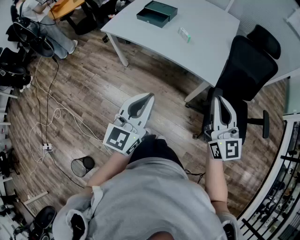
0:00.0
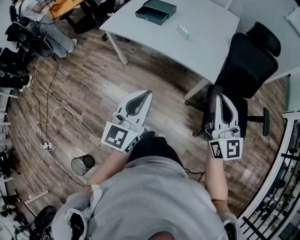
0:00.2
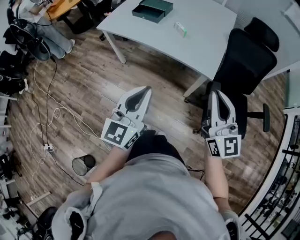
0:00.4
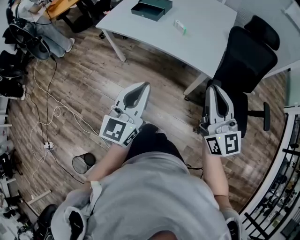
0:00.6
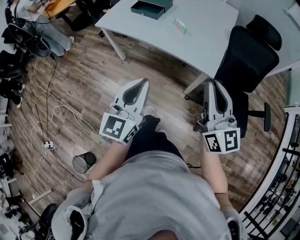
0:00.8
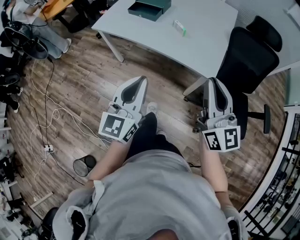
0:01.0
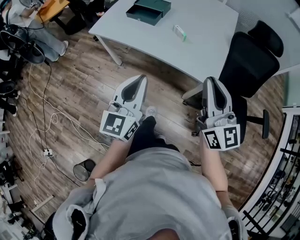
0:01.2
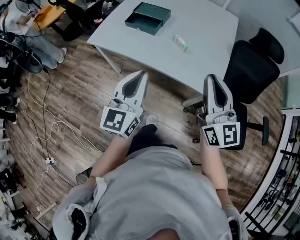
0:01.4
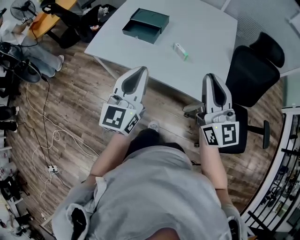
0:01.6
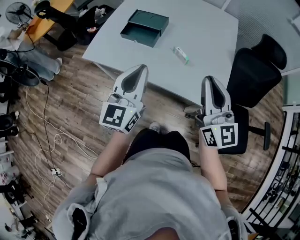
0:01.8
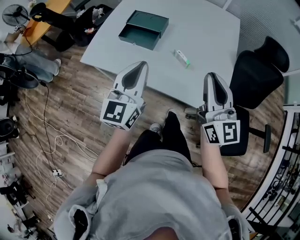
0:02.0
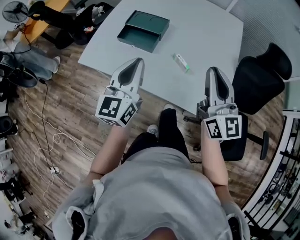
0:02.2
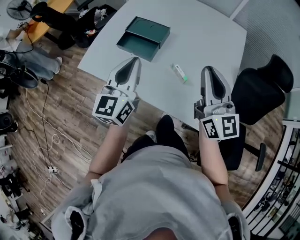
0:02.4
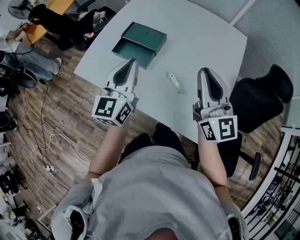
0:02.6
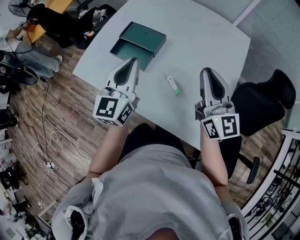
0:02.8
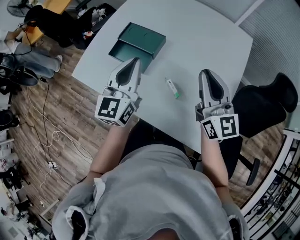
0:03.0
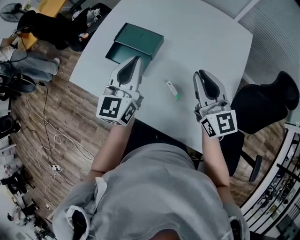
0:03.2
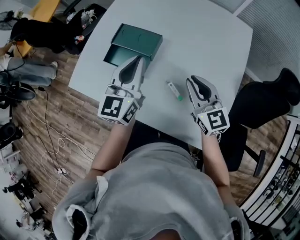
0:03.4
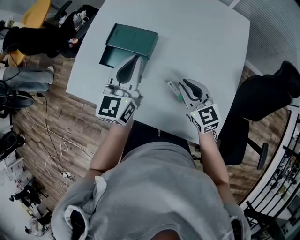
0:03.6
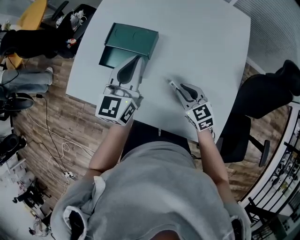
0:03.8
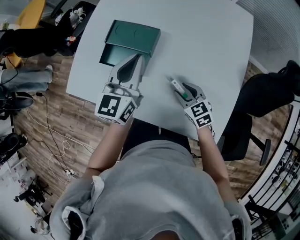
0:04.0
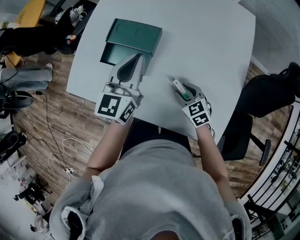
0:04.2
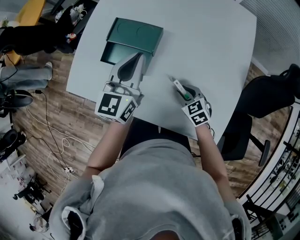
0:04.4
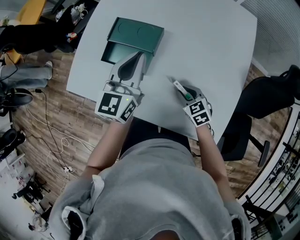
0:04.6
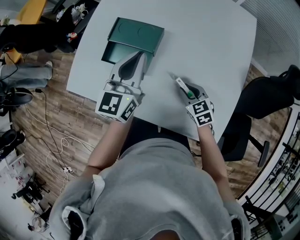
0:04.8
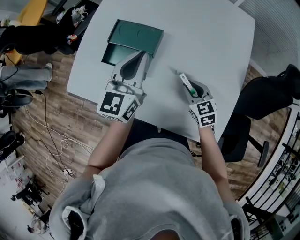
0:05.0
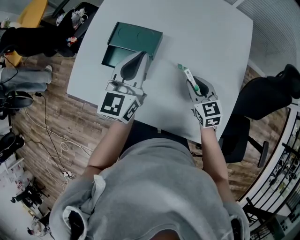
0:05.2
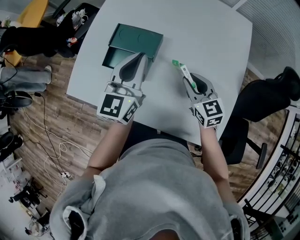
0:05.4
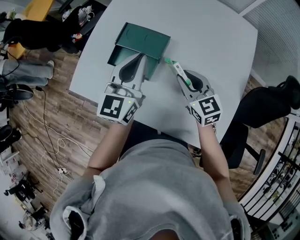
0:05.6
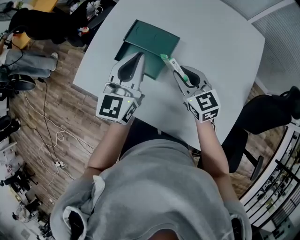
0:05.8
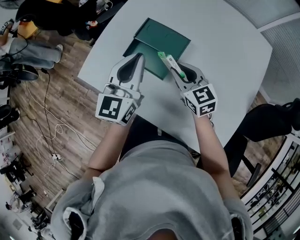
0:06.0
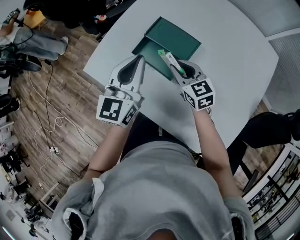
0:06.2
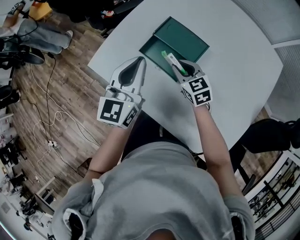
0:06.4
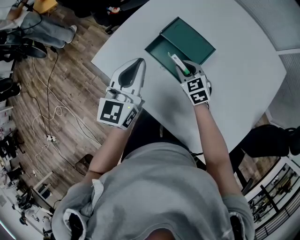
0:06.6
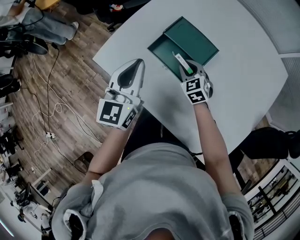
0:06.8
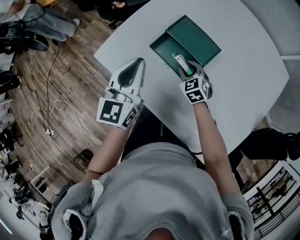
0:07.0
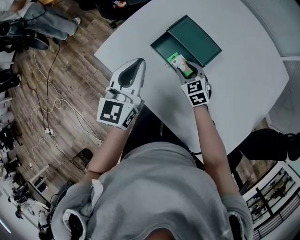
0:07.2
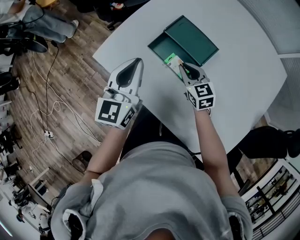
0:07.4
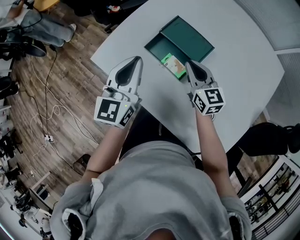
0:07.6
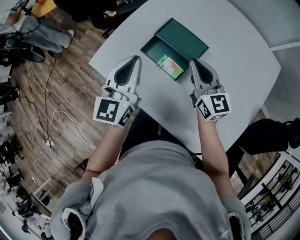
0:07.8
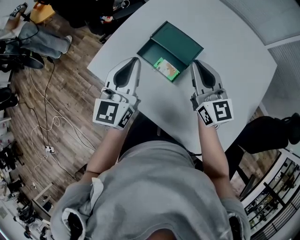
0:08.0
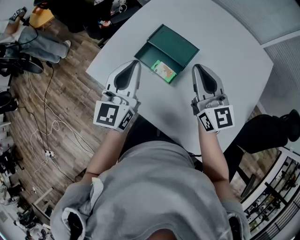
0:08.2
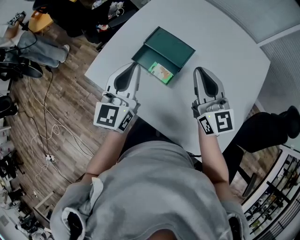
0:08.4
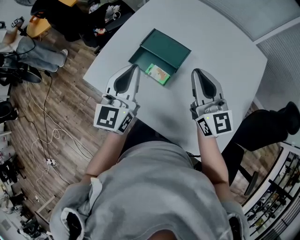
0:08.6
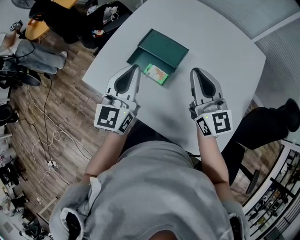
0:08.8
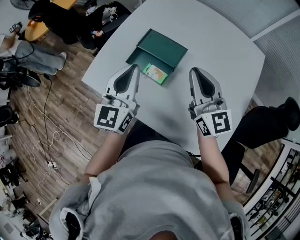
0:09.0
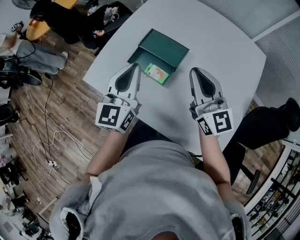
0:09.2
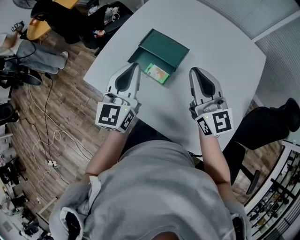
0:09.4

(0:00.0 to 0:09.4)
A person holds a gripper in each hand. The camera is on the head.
0:00.0 - 0:01.6: The grippers both shift forward by some 30 cm.
0:01.6 - 0:03.2: Both grippers move forward, approximately 40 cm.
0:03.2 - 0:04.8: The right gripper is displaced downward by some 25 cm, and tips its fingers downward by approximately 40 degrees, while the left gripper is displaced forward and downward by about 10 cm.
0:04.8 - 0:06.2: The left gripper moves to the left, some 15 cm. Meanwhile the right gripper heads to the left, forward and upward, covering roughly 25 cm, and swivels approximately 20 degrees.
0:06.2 - 0:07.8: The right gripper travels upward by about 10 cm, and swivels about 20 degrees; the left gripper heads to the left, covering about 5 cm.
0:07.8 - 0:09.4: The left gripper shifts some 5 cm to the right, while the right gripper shifts approximately 15 cm upward, backward and to the right.

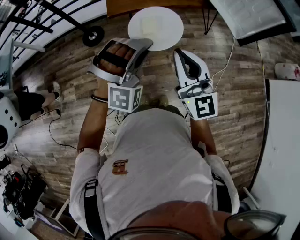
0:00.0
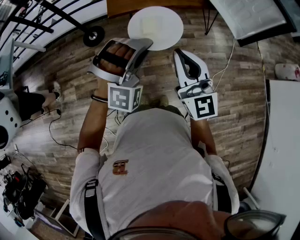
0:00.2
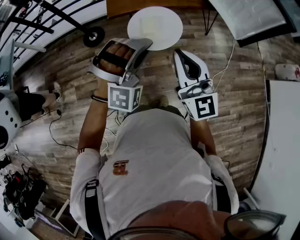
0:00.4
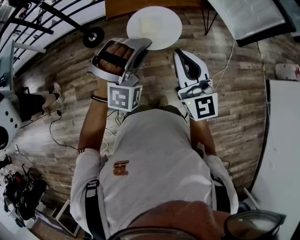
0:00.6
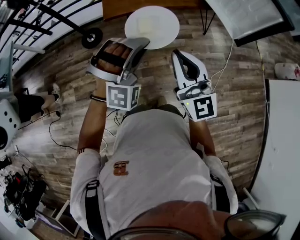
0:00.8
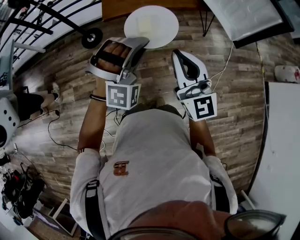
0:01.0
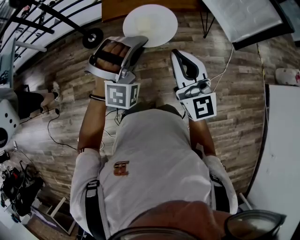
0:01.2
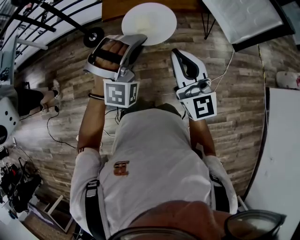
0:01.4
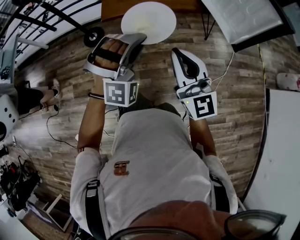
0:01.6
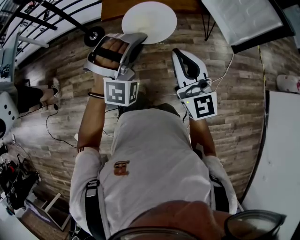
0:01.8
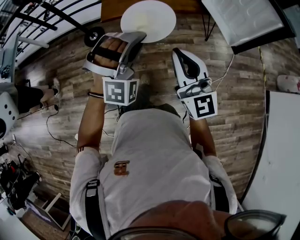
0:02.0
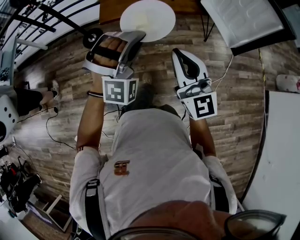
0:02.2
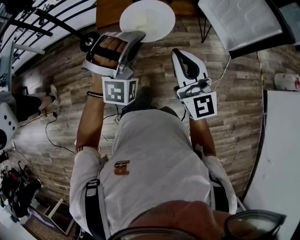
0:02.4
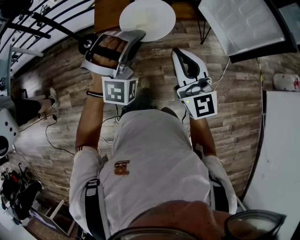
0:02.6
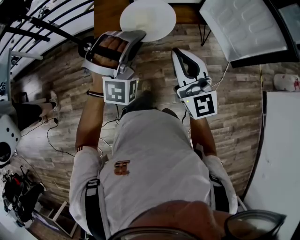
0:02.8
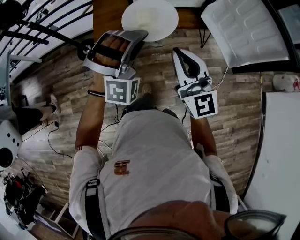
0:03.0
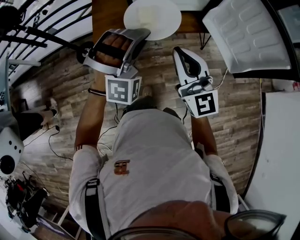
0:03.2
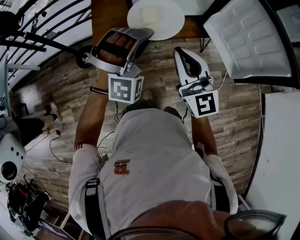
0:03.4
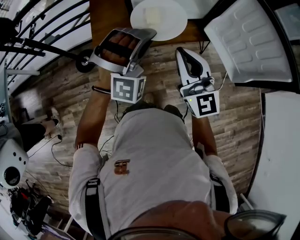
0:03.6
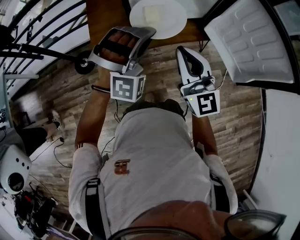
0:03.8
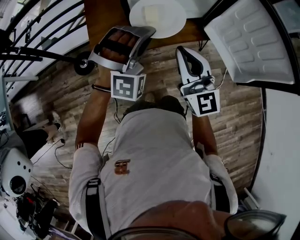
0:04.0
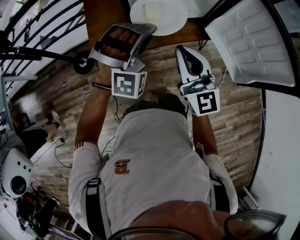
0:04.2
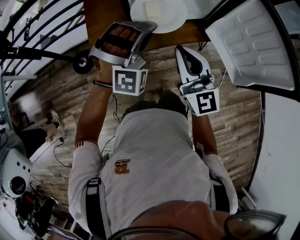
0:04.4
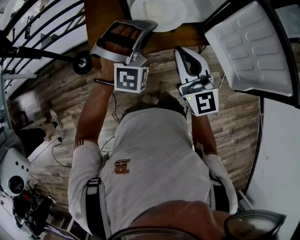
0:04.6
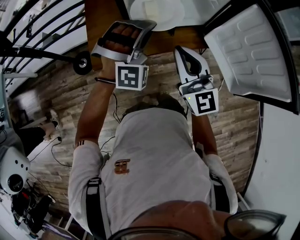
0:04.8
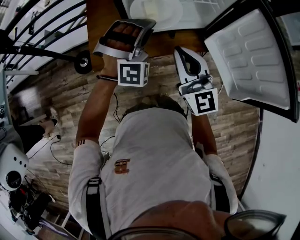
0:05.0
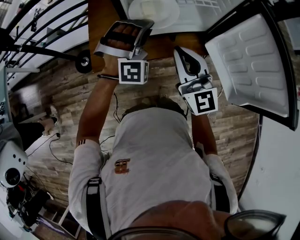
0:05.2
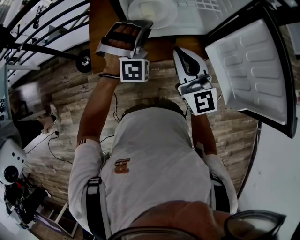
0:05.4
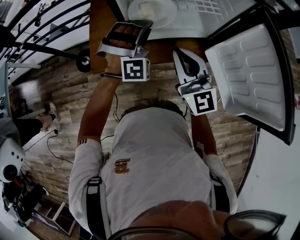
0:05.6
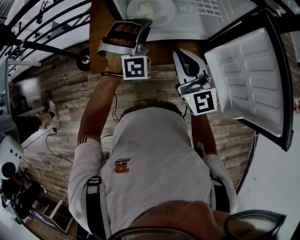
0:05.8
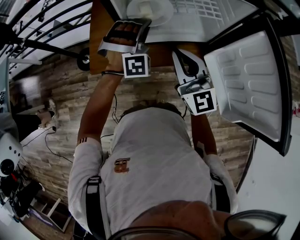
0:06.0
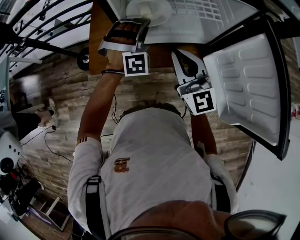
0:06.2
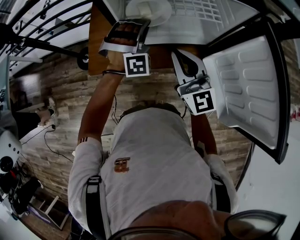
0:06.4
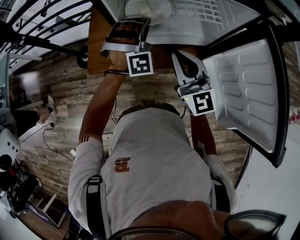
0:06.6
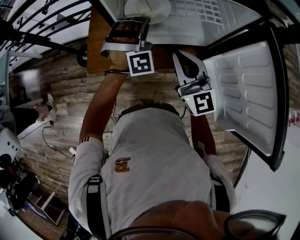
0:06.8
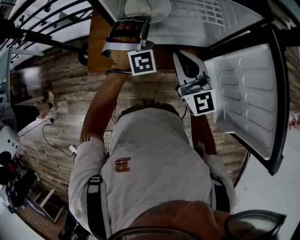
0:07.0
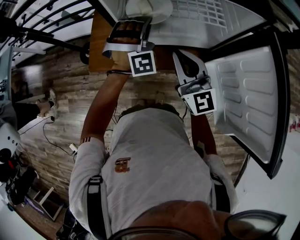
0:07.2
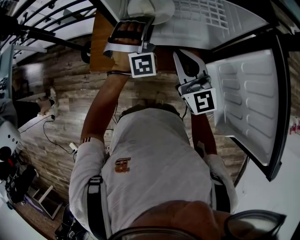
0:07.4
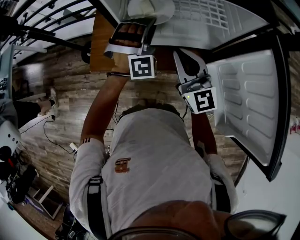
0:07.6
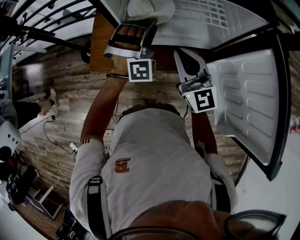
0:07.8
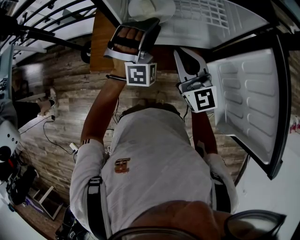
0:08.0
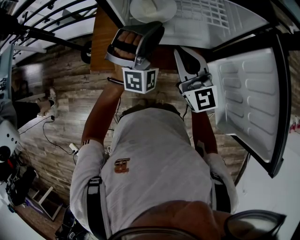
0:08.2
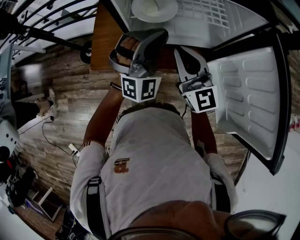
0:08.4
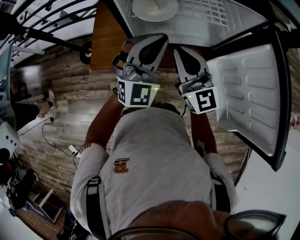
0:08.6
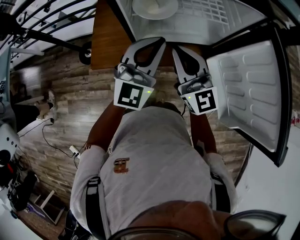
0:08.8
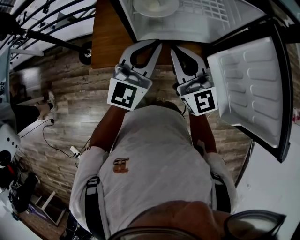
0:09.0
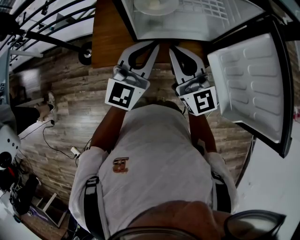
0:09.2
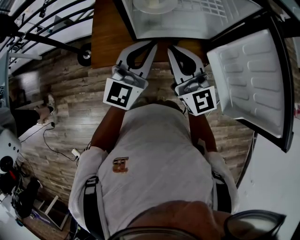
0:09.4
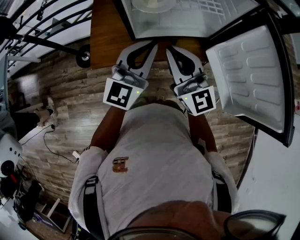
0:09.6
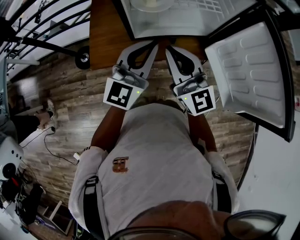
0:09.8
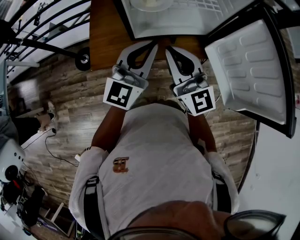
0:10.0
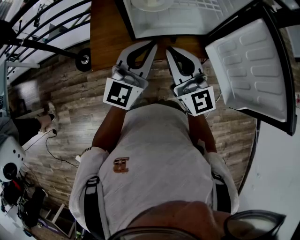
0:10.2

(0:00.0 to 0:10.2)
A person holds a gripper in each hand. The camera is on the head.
0:00.0 - 0:01.4: The right gripper ends up some 10 cm from where it was.
0:01.4 - 0:03.0: The right gripper shifts by some 20 cm.
0:03.0 - 0:04.4: The right gripper shifts by about 20 cm.
0:04.4 - 0:05.8: The right gripper changes place by approximately 15 cm.
0:05.8 - 0:07.2: The right gripper moves roughly 5 cm.
0:08.8 - 0:10.2: The right gripper moves about 10 cm.

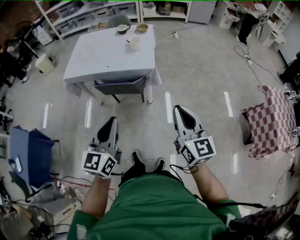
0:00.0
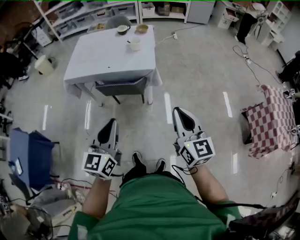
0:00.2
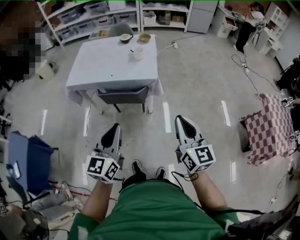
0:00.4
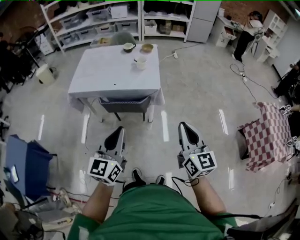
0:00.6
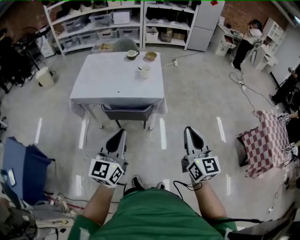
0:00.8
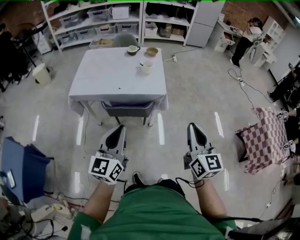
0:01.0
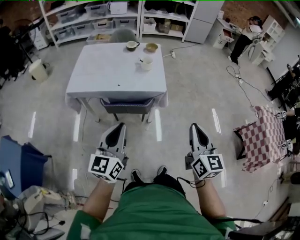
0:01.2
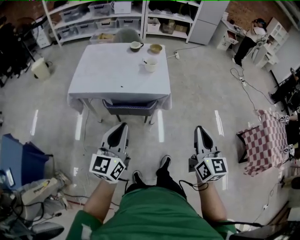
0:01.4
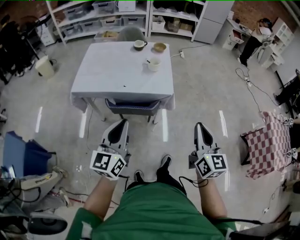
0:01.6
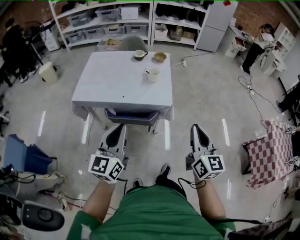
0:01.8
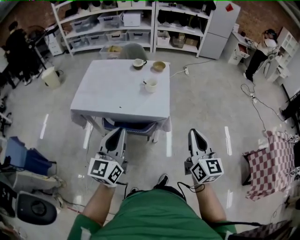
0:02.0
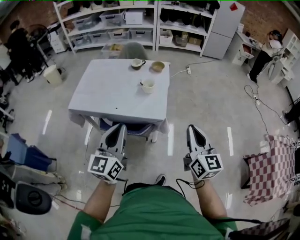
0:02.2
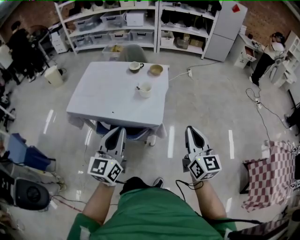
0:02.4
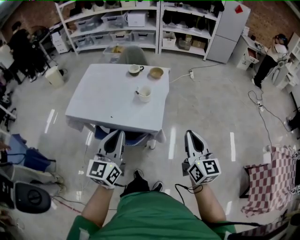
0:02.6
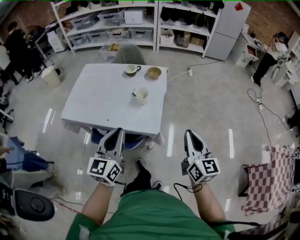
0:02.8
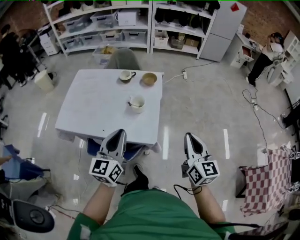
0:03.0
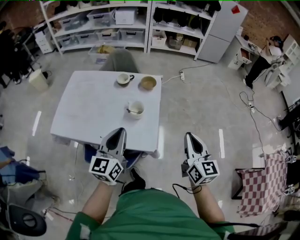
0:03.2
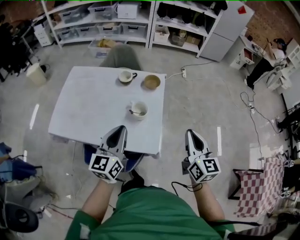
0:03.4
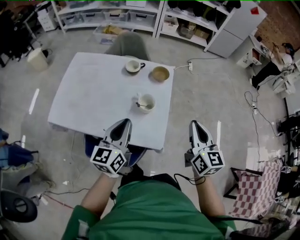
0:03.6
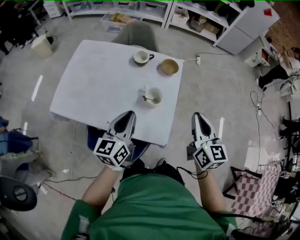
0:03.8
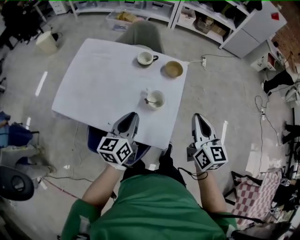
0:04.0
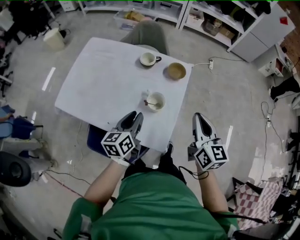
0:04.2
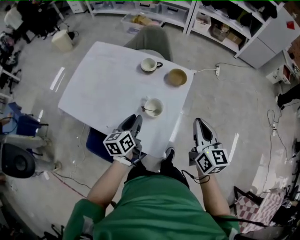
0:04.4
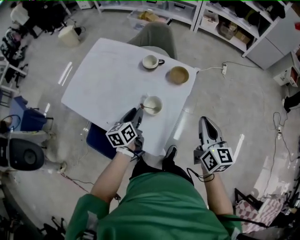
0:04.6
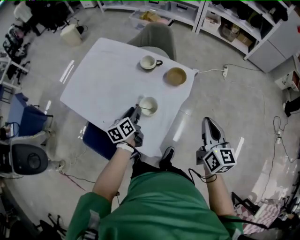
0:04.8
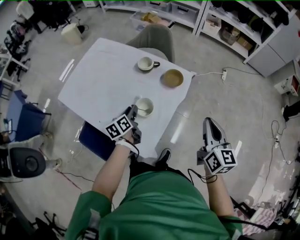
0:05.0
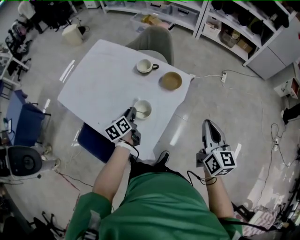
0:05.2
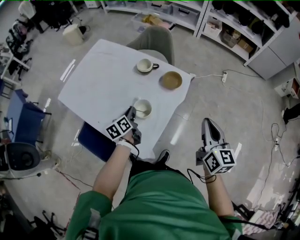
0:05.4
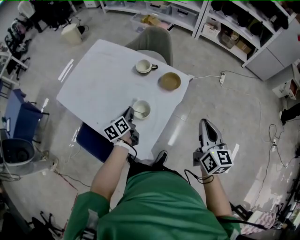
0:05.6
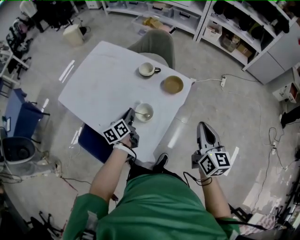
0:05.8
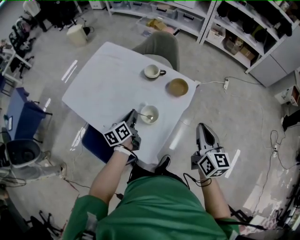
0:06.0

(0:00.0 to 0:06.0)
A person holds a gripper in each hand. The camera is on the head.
0:00.0 - 0:01.6: The right gripper shifts about 15 cm forward and to the left. Meanwhile the left gripper travels to the left and forward by some 20 cm.
0:01.6 - 0:03.0: The left gripper travels forward and to the right by roughly 35 cm. Meanwhile the right gripper is displaced forward by approximately 35 cm.
0:03.0 - 0:04.4: The right gripper travels forward by roughly 30 cm. Meanwhile the left gripper travels forward and downward by roughly 35 cm, changes its angle by roughly 40 degrees, and opens.
0:04.4 - 0:06.0: The left gripper shifts roughly 5 cm forward, while the right gripper shifts some 5 cm to the right.
